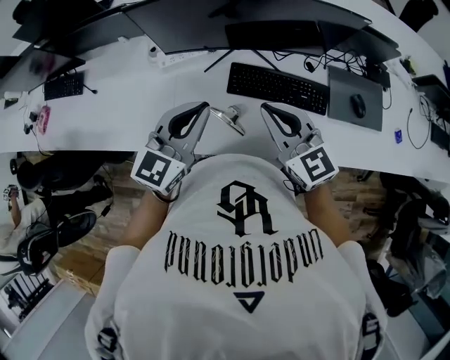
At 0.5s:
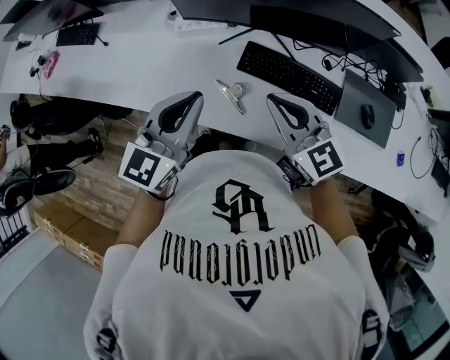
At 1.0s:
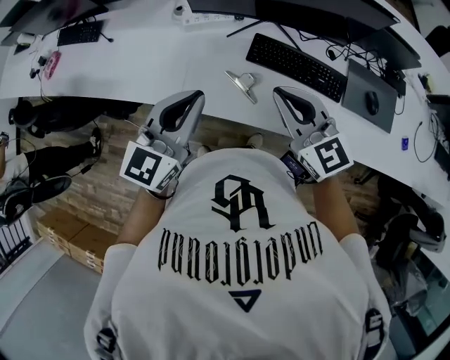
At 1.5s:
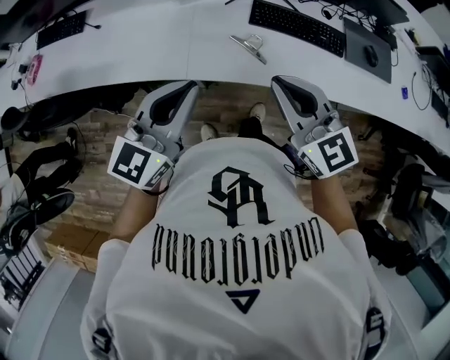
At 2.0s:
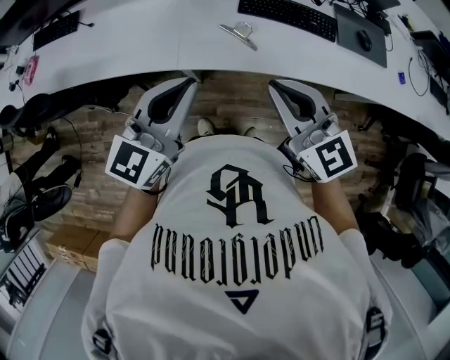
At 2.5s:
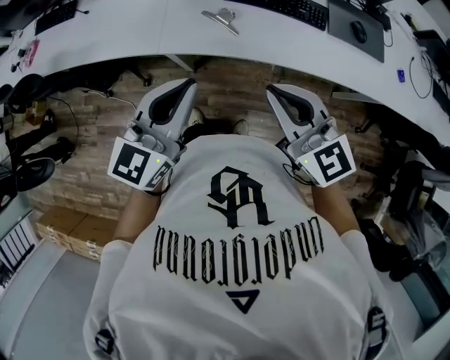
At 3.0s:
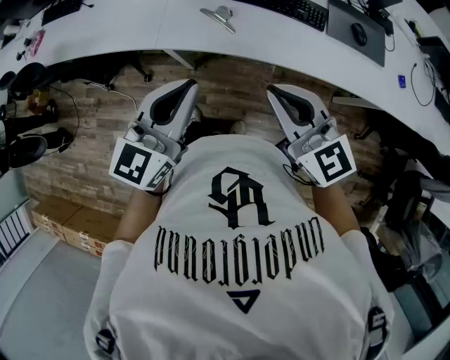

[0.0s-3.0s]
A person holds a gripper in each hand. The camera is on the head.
0.0s to 1.5s: Both grippers move backward and to the left, about 25 cm.
1.5s to 3.0s: Both grippers travel together to the right and backward, approximately 20 cm.

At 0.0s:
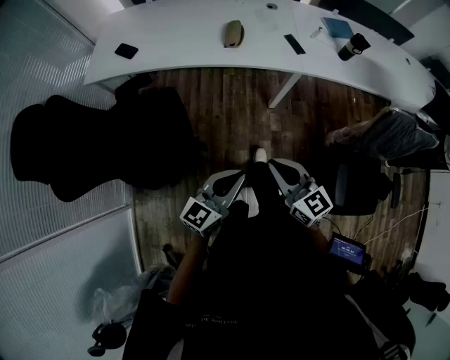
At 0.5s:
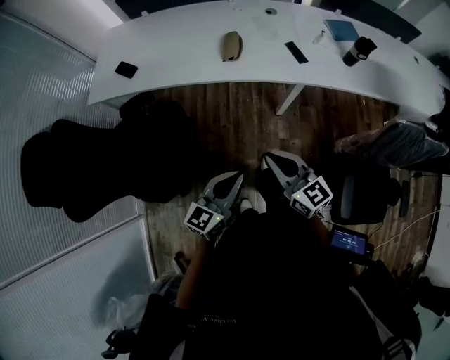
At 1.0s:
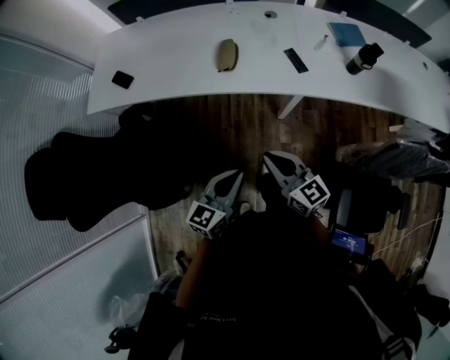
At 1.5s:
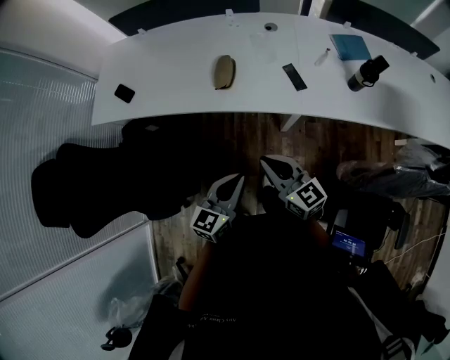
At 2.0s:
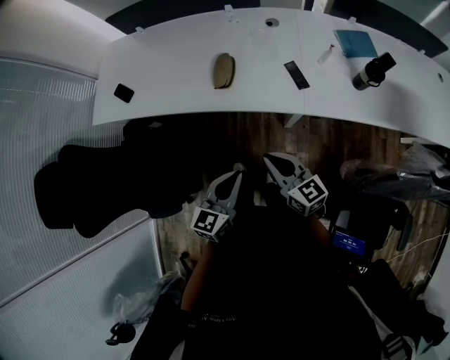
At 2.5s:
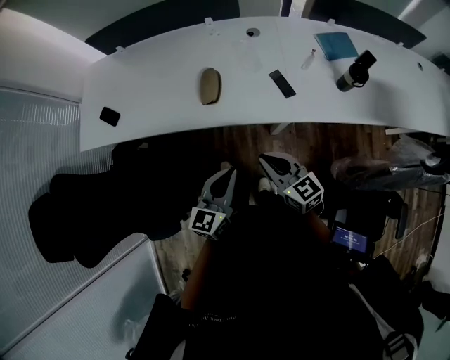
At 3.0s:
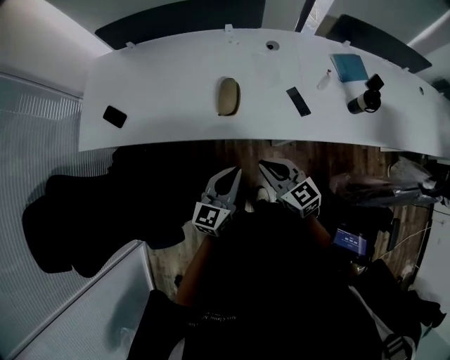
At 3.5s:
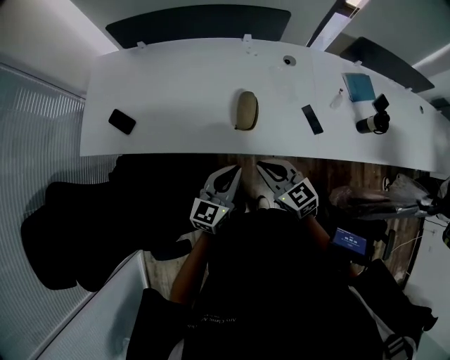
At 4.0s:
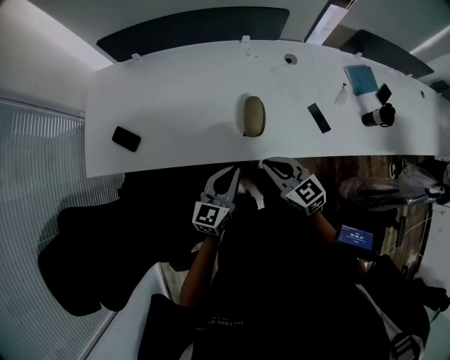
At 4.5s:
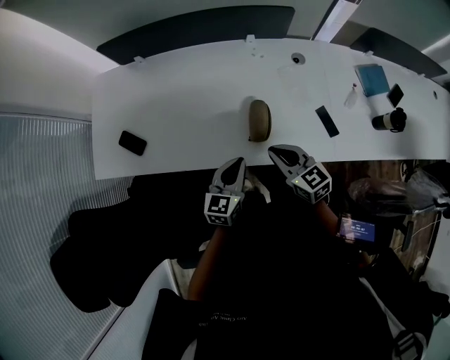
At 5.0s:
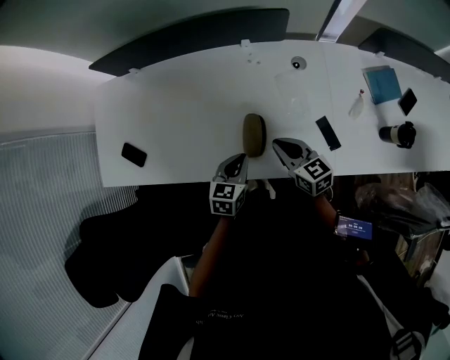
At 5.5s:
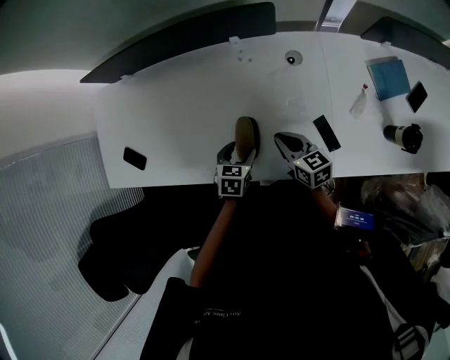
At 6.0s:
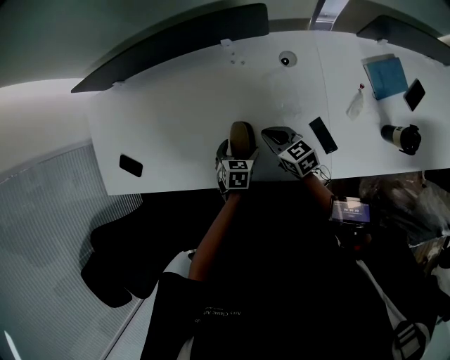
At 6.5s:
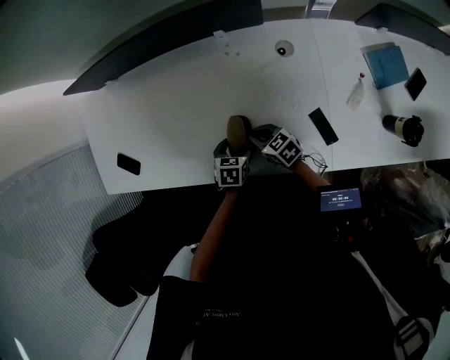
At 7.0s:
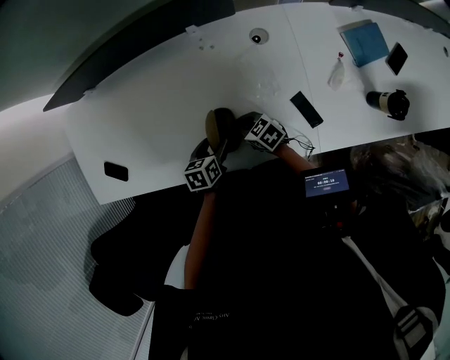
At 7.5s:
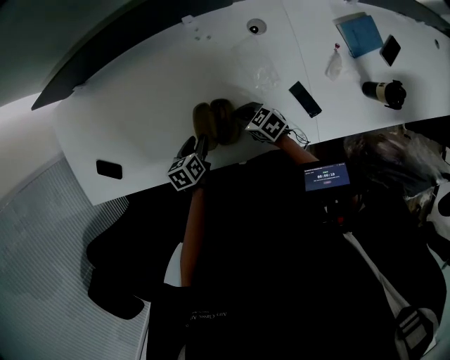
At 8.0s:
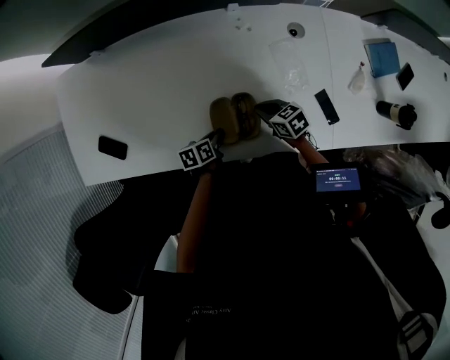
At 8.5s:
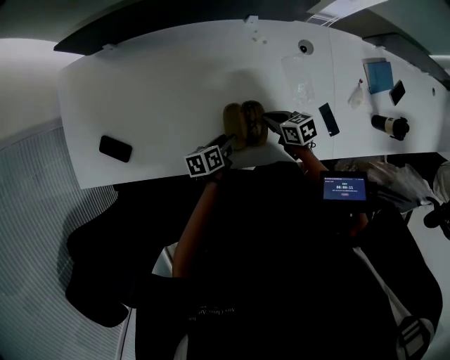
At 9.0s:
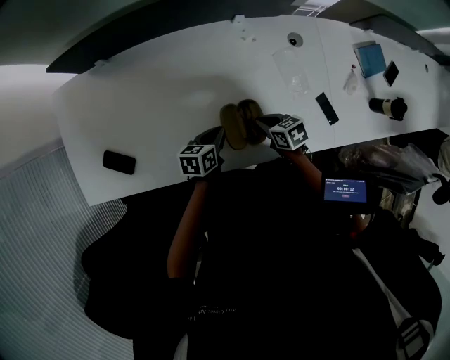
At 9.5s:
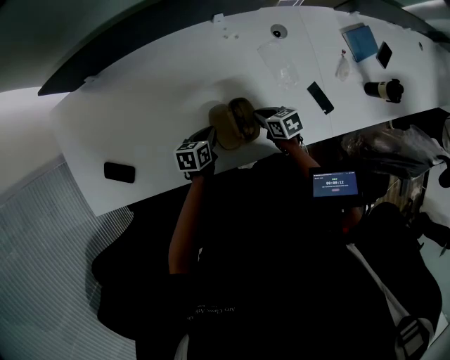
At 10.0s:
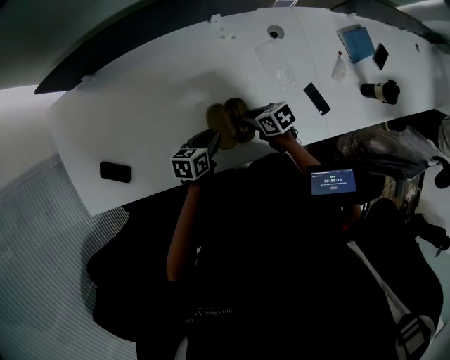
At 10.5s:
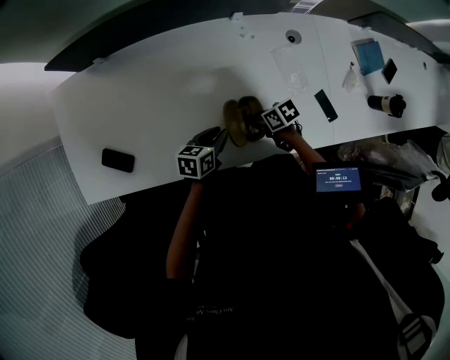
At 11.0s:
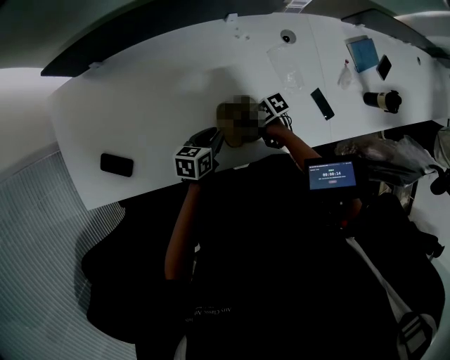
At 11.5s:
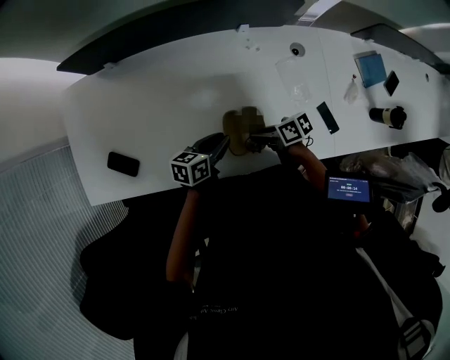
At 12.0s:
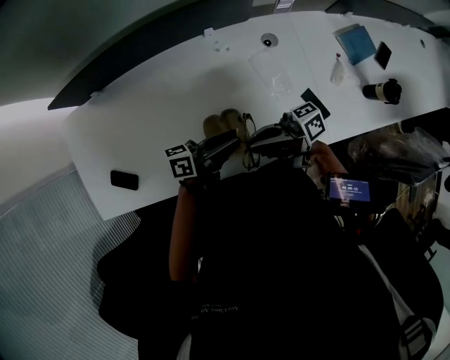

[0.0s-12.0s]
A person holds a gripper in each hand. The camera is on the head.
0.0s to 2.0s: Both grippers move forward and to the right, some 30 cm. The left gripper turns by roughly 20 degrees.
2.0s to 4.0s: Both grippers move forward and to the left, approximately 30 cm. The right gripper changes its angle by about 20 degrees.
4.0s to 6.0s: The right gripper goes about 30 cm forward, to the right and downward. Meanwhile the left gripper heads downward, forward and to the right, covering approximately 30 cm, tilts its fingers approximately 50 degrees downward, and opens up.
6.0s to 8.0s: The left gripper heads to the left, covering roughly 10 cm, rotates around the line of its fingers by roughly 40 degrees, counterclockwise from behind, and closes up. Meanwhile the right gripper goes approximately 10 cm downward and to the left.
8.0s to 10.0s: The left gripper goes up and down, approximately 10 cm each way, reversing 2 times, and swivels approximately 30 degrees.
10.0s to 12.0s: The right gripper is displaced upward by about 25 cm, and points its fingers some 70 degrees further upward; the left gripper moves upward, roughly 15 cm, and angles its fingers upward, by approximately 40 degrees.

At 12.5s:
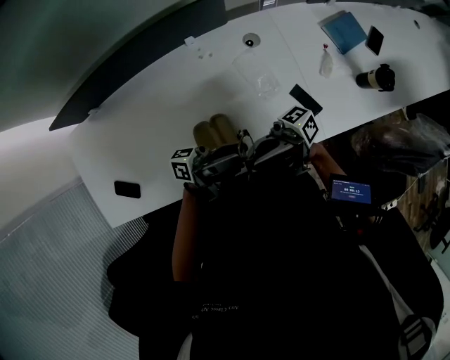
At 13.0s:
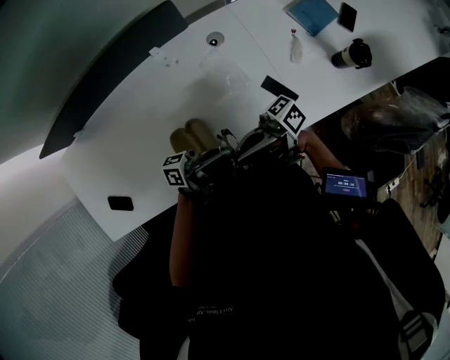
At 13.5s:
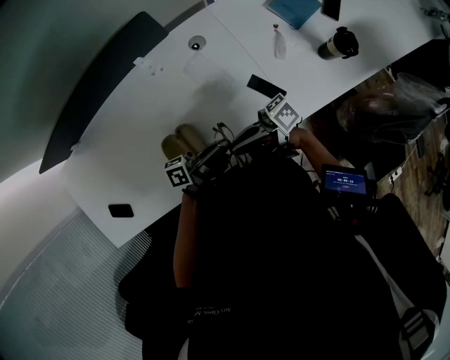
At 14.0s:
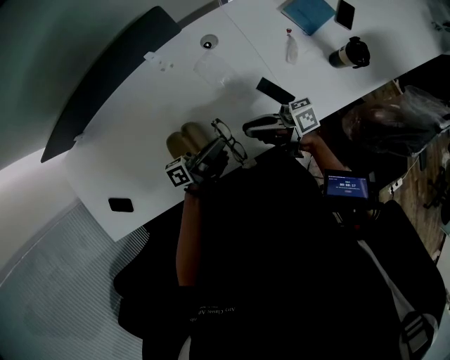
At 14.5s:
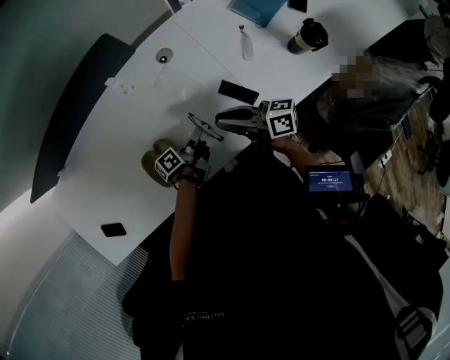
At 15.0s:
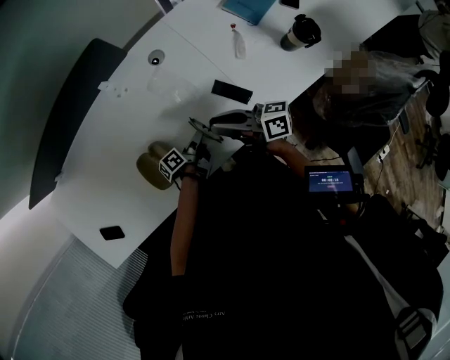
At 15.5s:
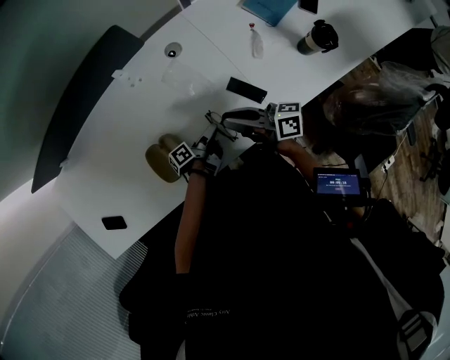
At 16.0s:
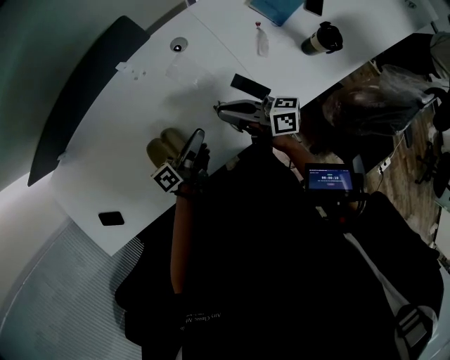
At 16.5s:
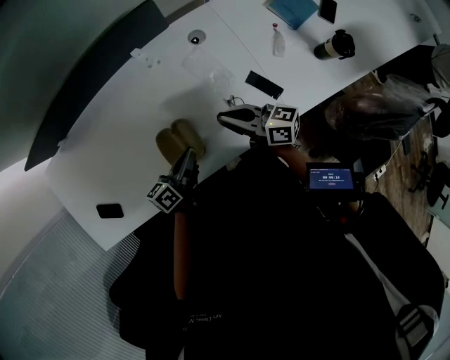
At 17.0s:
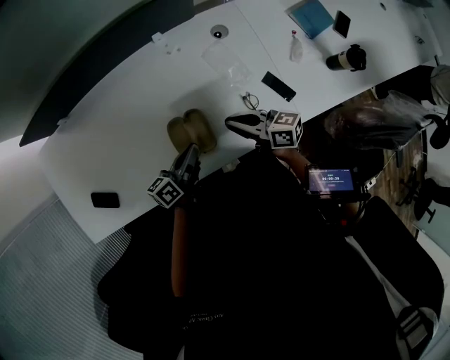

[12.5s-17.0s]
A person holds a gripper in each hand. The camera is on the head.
12.5s to 14.5s: The left gripper is displaced downward by approximately 25 cm, and angles its fingers downward, by about 50 degrees, while the right gripper ends up some 20 cm from where it was, and tips its fingers downward by some 40 degrees.
14.5s to 17.0s: The right gripper goes some 15 cm to the left. Meanwhile the left gripper heads to the left and upward, covering roughly 20 cm, and turns by approximately 30 degrees.

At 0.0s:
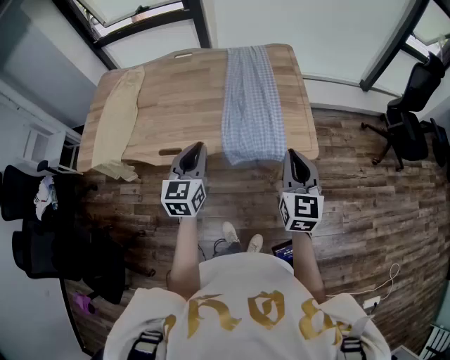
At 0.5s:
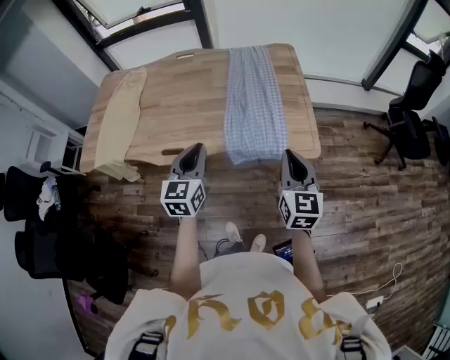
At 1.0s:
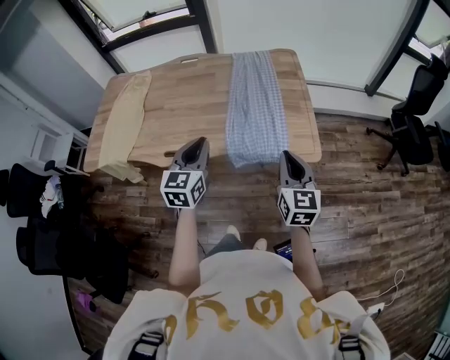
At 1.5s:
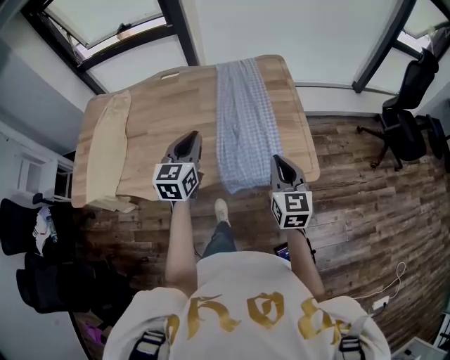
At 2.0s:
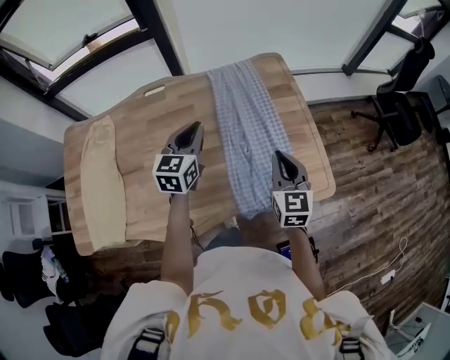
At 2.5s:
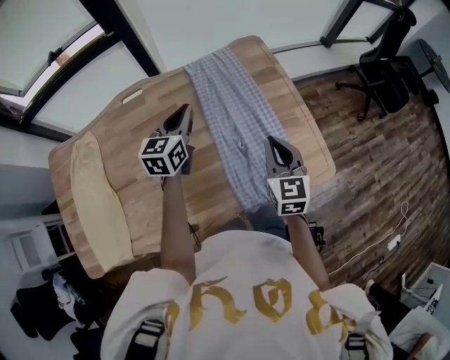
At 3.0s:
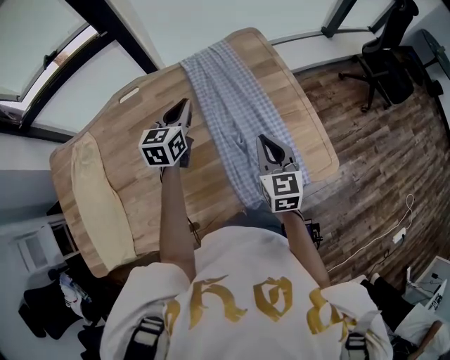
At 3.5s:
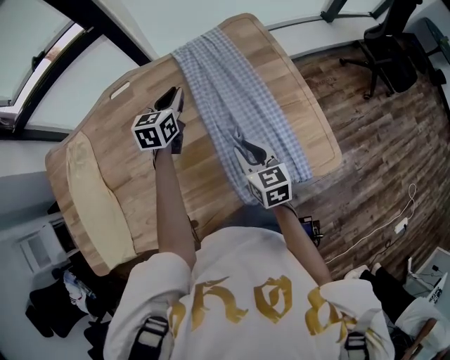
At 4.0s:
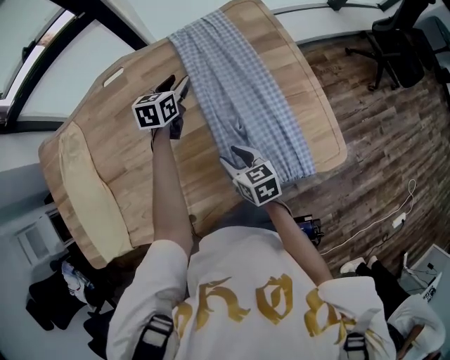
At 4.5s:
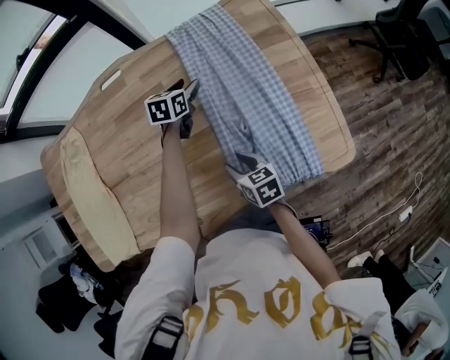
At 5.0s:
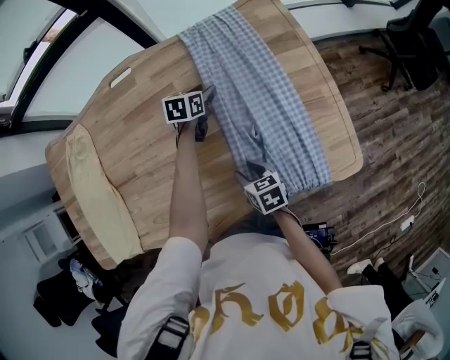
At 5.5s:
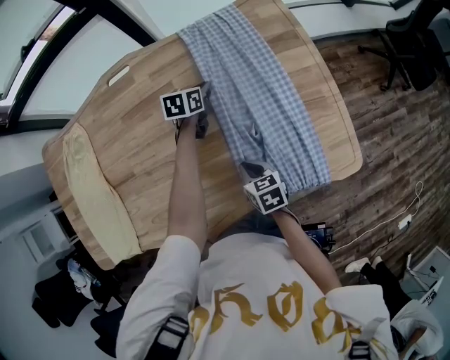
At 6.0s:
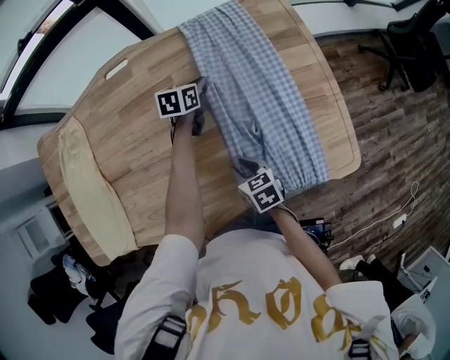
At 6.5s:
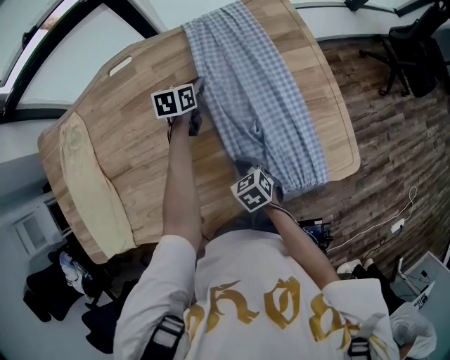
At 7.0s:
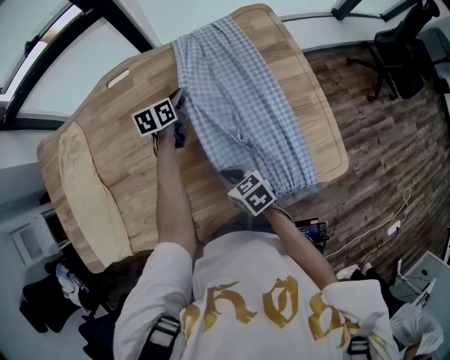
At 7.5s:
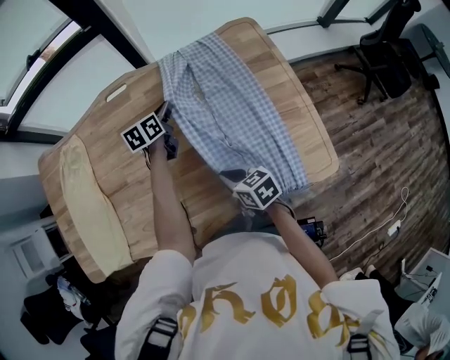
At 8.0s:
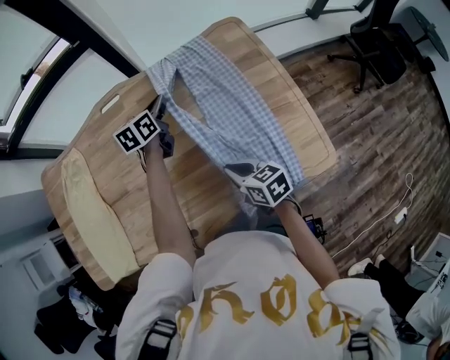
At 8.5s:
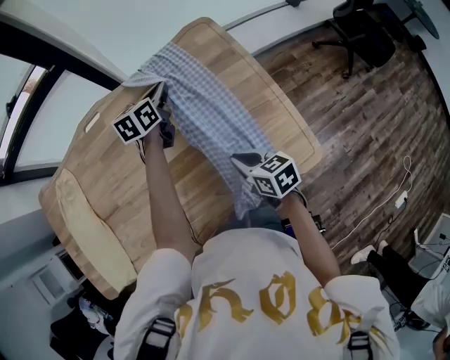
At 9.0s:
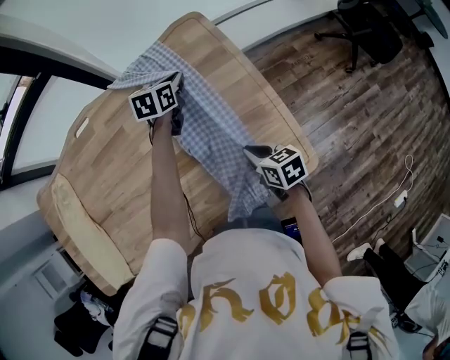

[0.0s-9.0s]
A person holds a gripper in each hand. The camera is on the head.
0.0s to 2.0s: The right gripper moves forward and to the left, roughly 30 cm; the left gripper goes approximately 35 cm forward.
2.0s to 4.5s: The left gripper heads downward and forward, covering about 30 cm, swivels roughly 30 degrees, and opens up. The right gripper shifts approximately 25 cm downward and to the left, changes its angle by approximately 50 degrees, and opens its fingers.
4.5s to 7.0s: The right gripper shifts by approximately 5 cm, and closes, while the left gripper travels to the left by some 5 cm, and closes up.
7.0s to 9.0s: The grippers both shift to the right by approximately 25 cm. The right gripper turns by roughly 20 degrees.
